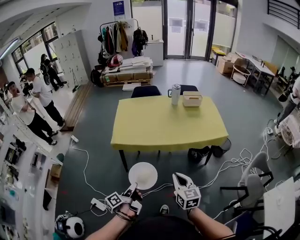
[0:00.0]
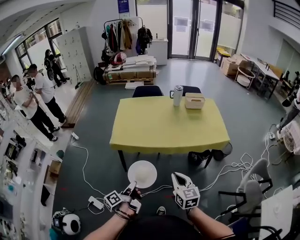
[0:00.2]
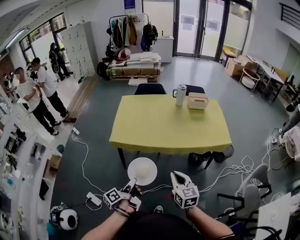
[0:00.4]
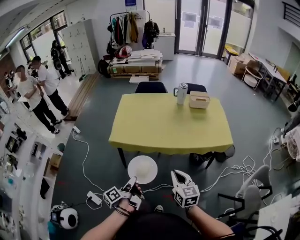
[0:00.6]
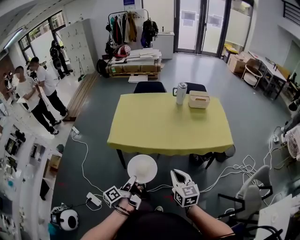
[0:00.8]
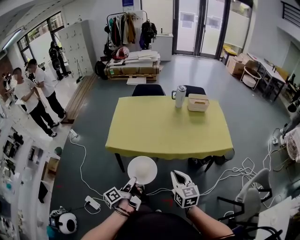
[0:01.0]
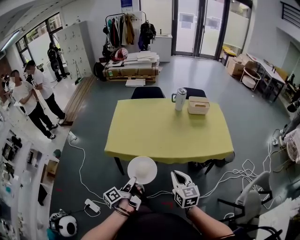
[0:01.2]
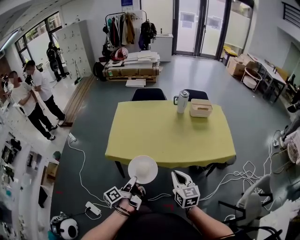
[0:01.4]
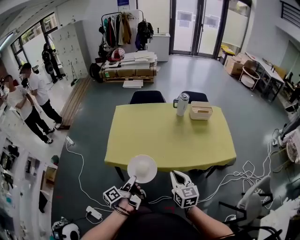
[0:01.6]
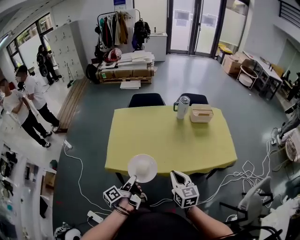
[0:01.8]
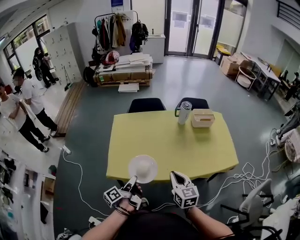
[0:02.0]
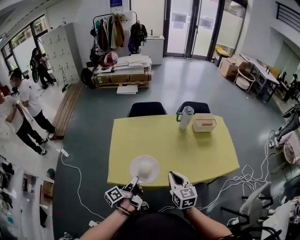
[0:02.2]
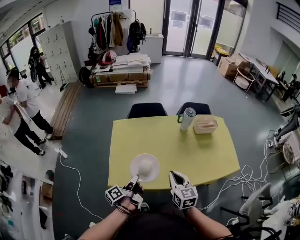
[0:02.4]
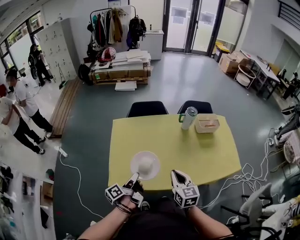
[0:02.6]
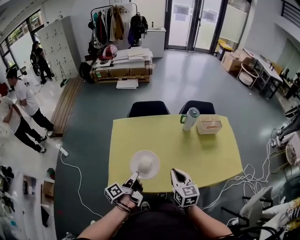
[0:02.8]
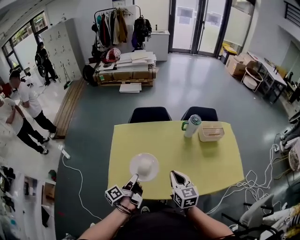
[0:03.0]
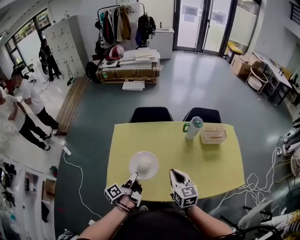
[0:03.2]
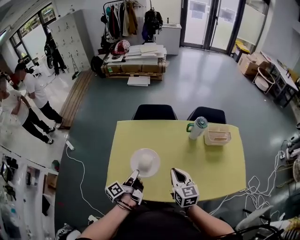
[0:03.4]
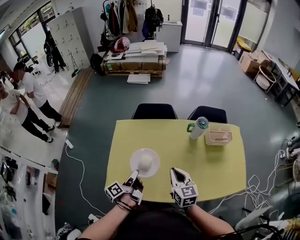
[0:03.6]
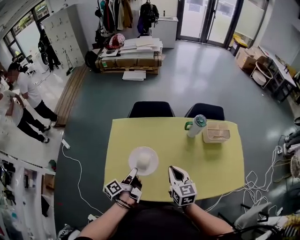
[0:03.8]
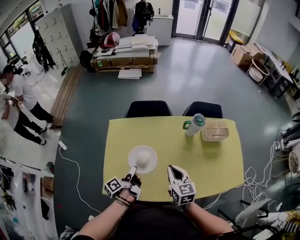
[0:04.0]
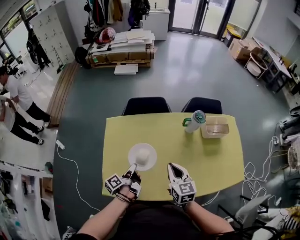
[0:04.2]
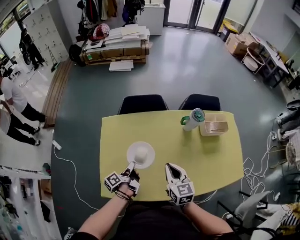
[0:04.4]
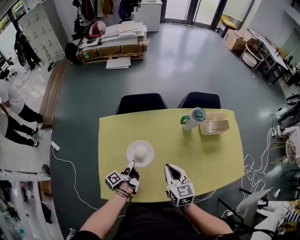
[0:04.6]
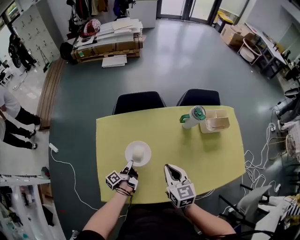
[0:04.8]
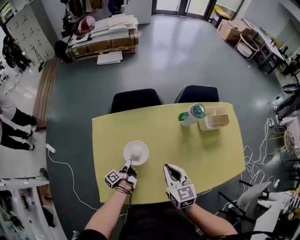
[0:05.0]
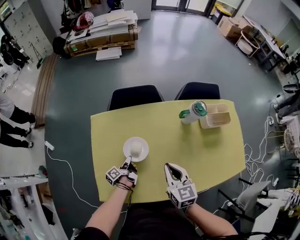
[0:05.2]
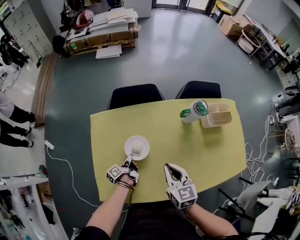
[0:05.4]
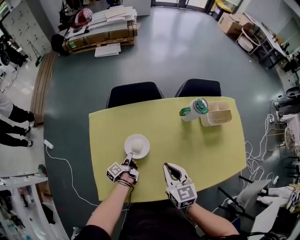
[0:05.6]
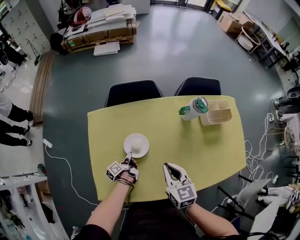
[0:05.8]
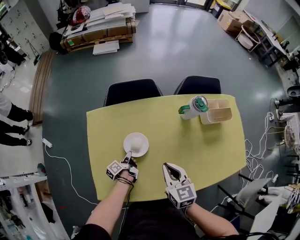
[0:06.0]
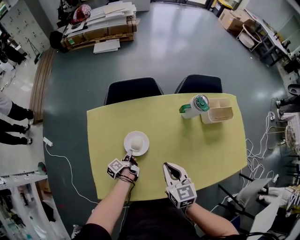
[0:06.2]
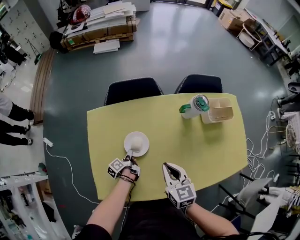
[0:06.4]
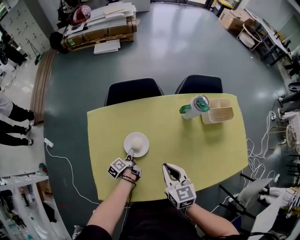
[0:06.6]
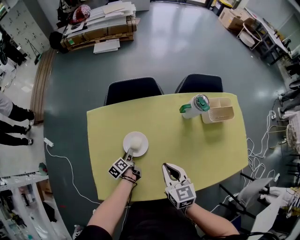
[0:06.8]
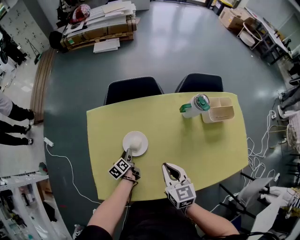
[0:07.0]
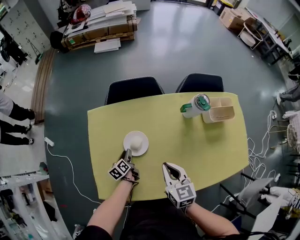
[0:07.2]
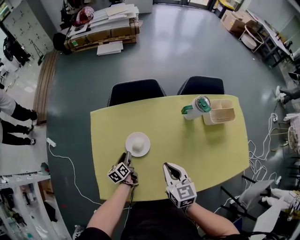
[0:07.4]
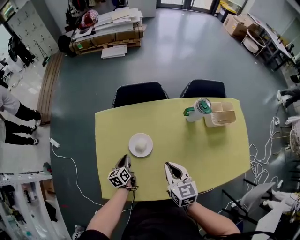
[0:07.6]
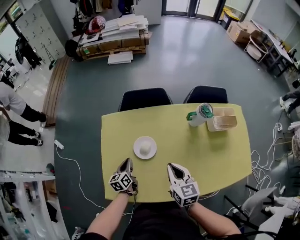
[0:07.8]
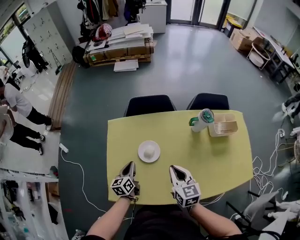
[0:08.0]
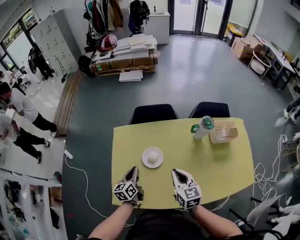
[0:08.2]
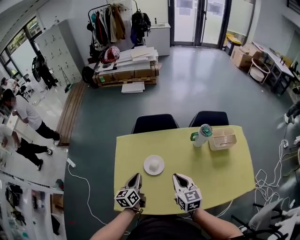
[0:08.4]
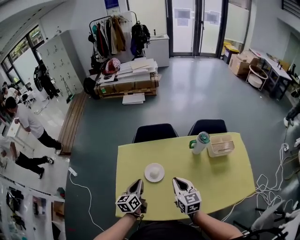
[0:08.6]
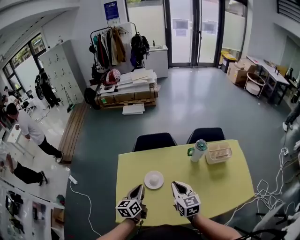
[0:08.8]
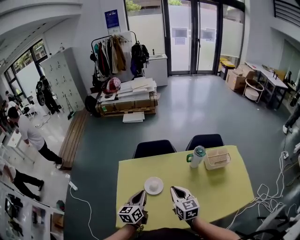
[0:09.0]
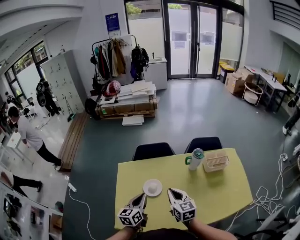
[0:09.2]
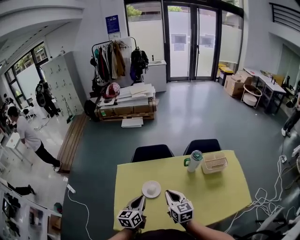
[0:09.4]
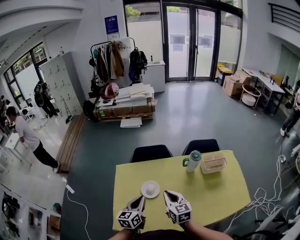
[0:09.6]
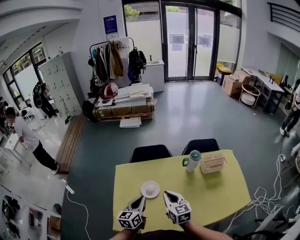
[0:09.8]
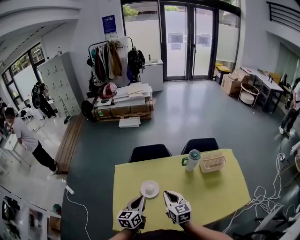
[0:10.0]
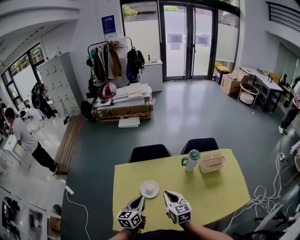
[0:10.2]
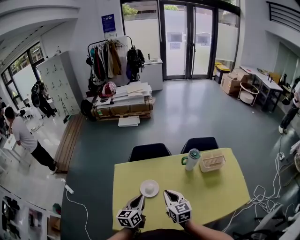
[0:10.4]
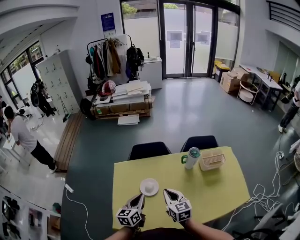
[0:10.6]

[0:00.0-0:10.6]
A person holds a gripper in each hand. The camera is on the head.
0:00.0 to 0:01.6: The right gripper ends up some 25 cm from where it was.
0:01.6 to 0:03.0: The right gripper ends up some 30 cm from where it was.
0:03.0 to 0:04.6: The right gripper ends up roughly 15 cm from where it was.
0:07.6 to 0:09.0: The right gripper travels upward by approximately 10 cm.

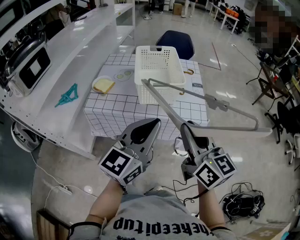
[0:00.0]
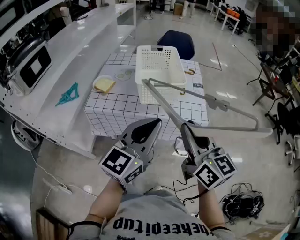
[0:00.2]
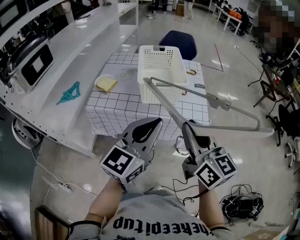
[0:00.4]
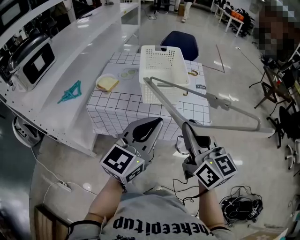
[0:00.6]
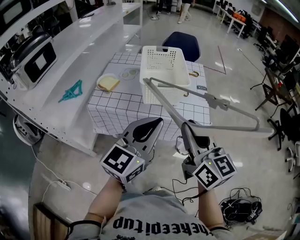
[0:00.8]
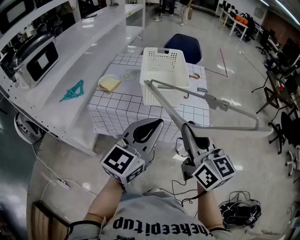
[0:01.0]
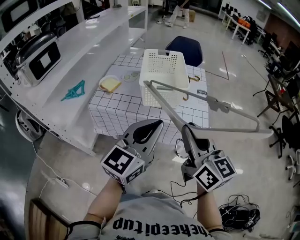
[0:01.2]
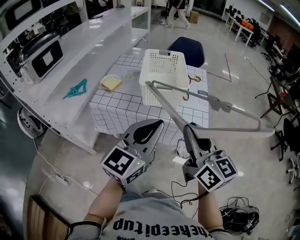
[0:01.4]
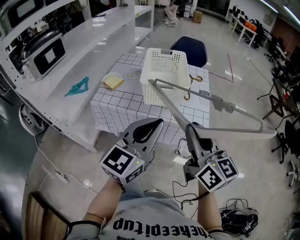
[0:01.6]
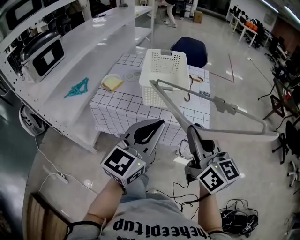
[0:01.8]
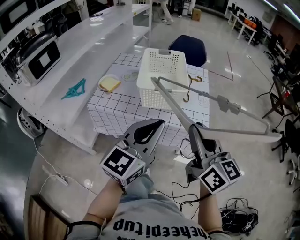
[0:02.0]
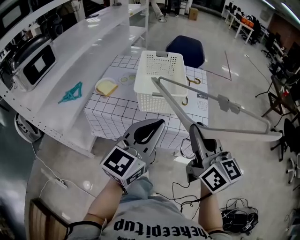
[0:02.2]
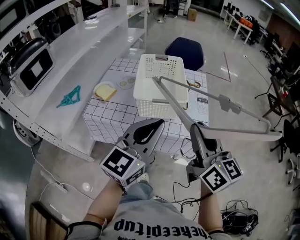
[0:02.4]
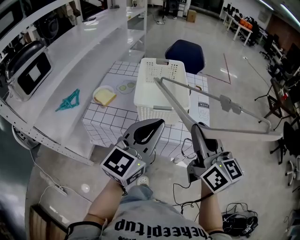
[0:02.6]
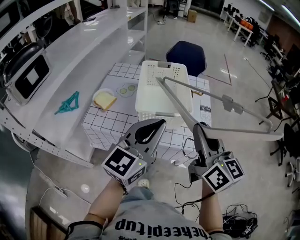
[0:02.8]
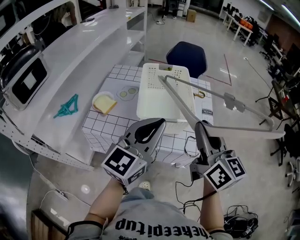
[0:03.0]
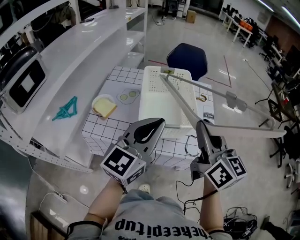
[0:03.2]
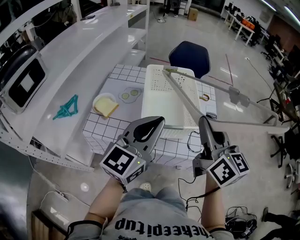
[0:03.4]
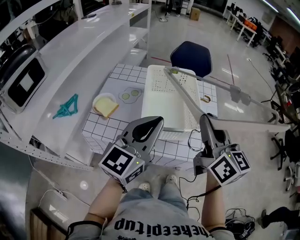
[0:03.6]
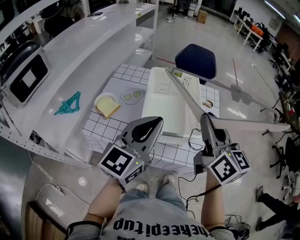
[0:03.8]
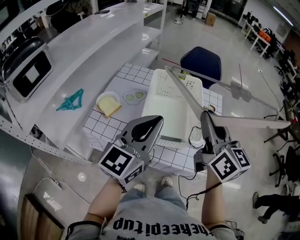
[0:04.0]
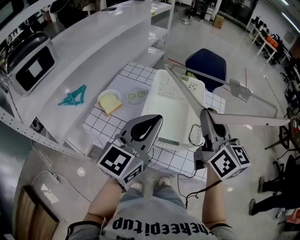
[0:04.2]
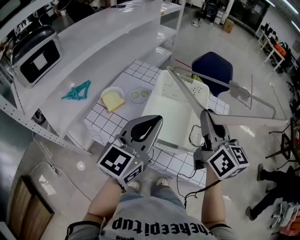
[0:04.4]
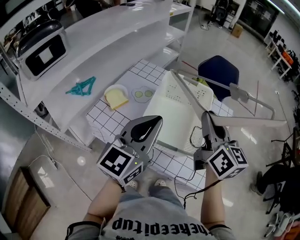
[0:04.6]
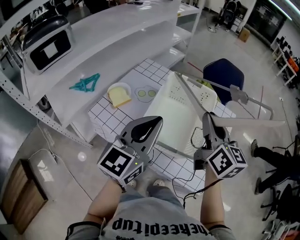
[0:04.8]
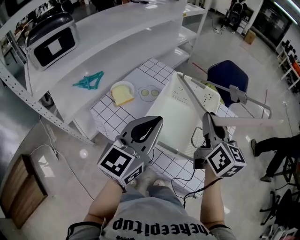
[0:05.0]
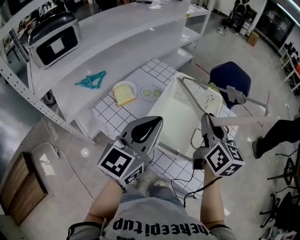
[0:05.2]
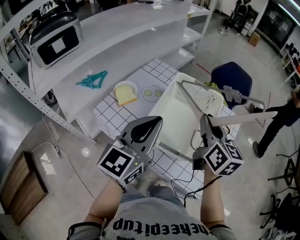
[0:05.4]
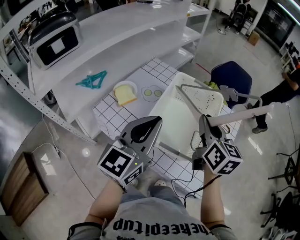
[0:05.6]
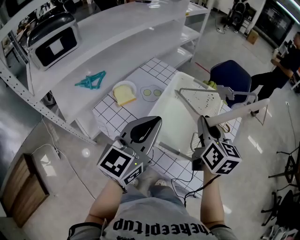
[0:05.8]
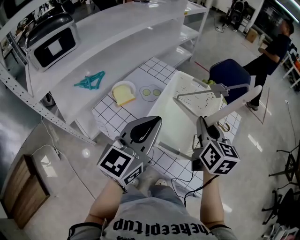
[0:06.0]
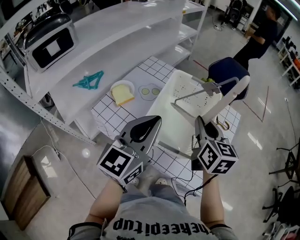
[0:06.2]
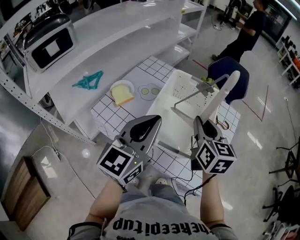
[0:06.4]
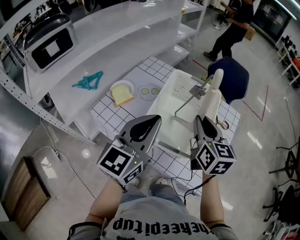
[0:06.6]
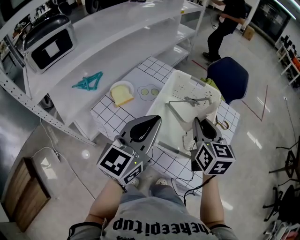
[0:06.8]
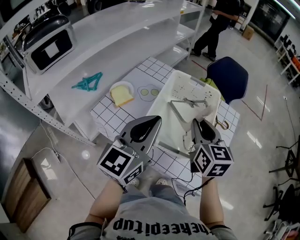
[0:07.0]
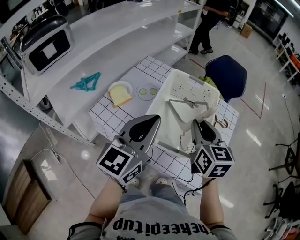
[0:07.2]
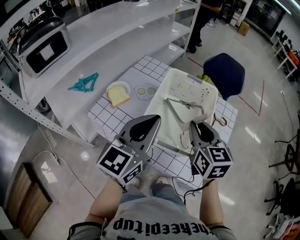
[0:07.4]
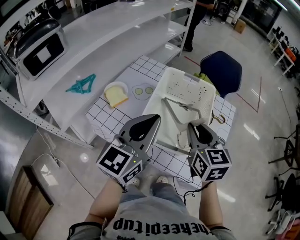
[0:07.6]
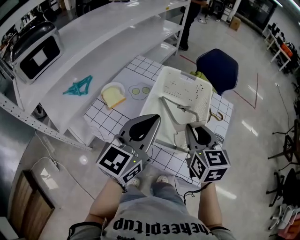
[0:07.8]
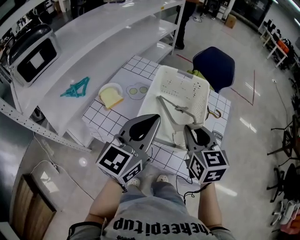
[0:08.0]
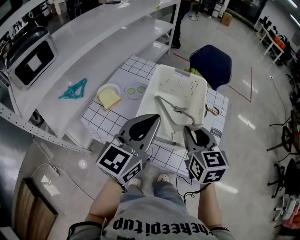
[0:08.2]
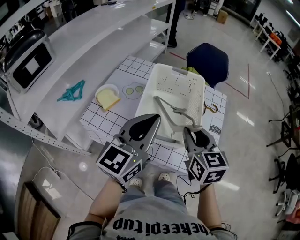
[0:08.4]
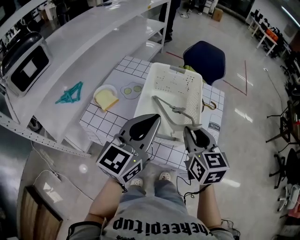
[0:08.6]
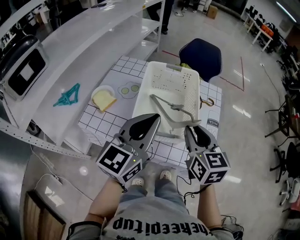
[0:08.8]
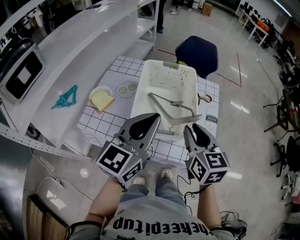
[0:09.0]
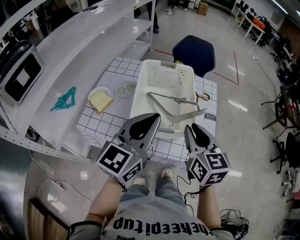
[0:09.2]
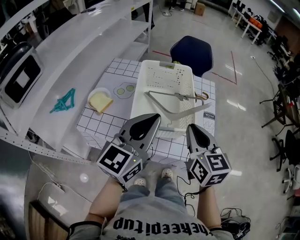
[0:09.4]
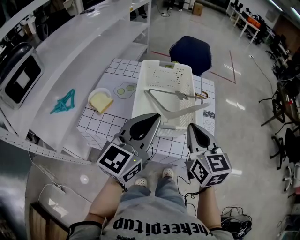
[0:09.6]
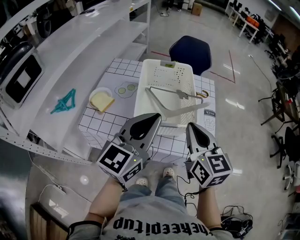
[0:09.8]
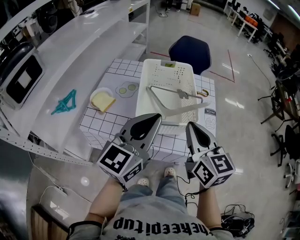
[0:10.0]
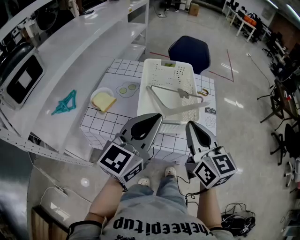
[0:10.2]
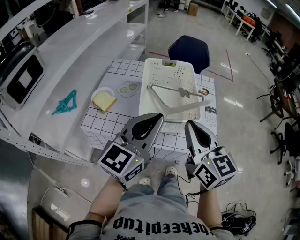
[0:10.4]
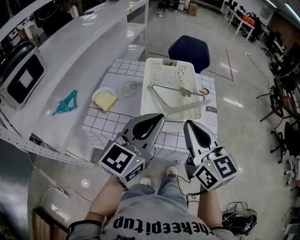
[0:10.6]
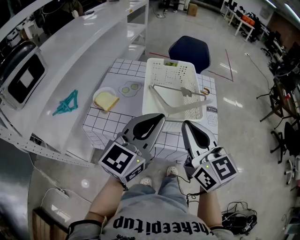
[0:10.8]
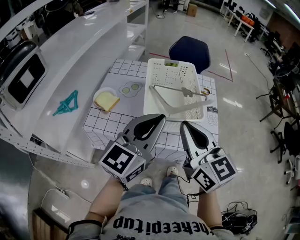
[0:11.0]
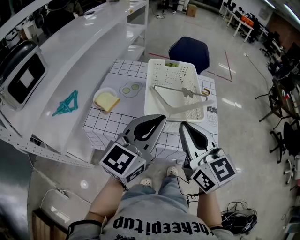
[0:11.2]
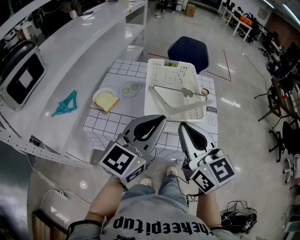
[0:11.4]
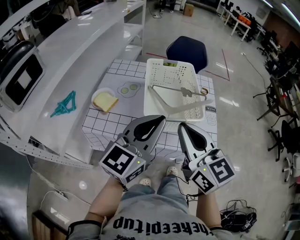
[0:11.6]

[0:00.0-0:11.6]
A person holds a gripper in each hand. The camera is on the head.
0:00.0 to 0:01.4: The grippers stay close to where they were, moving slightly.
0:01.4 to 0:02.8: Both grippers travel together forward, some 15 cm.
0:02.8 to 0:04.4: The right gripper goes approximately 20 cm forward, while the left gripper shifts approximately 15 cm forward.
0:04.4 to 0:05.8: The right gripper shifts approximately 10 cm downward and forward.
0:05.8 to 0:07.2: The grippers move only a little.
0:07.2 to 0:08.8: The right gripper shifts some 10 cm backward.
0:08.8 to 0:10.2: The left gripper travels backward by roughly 5 cm. The right gripper travels backward and upward by about 10 cm, and closes.
0:10.2 to 0:11.6: The right gripper is displaced to the left by about 5 cm.

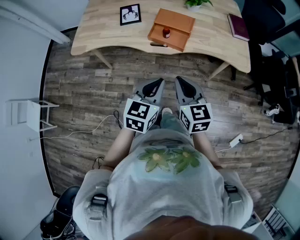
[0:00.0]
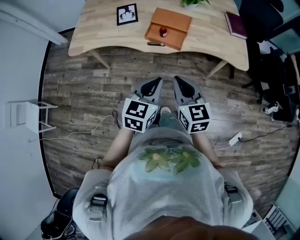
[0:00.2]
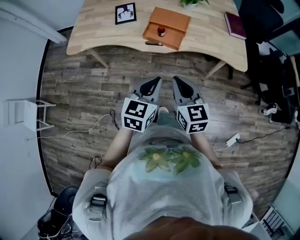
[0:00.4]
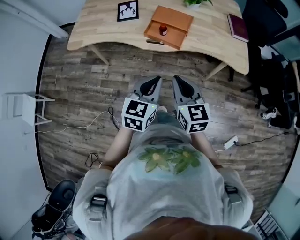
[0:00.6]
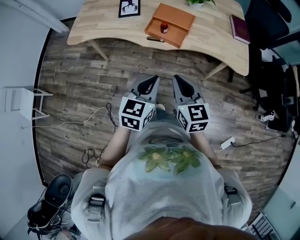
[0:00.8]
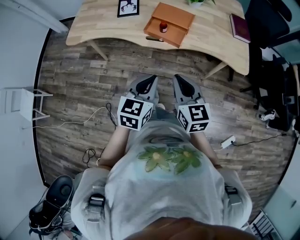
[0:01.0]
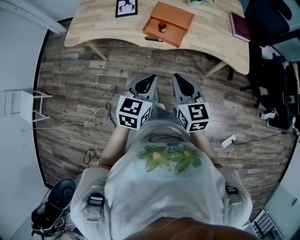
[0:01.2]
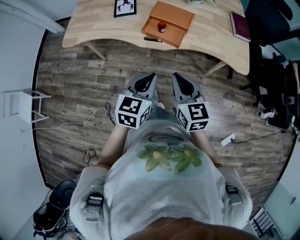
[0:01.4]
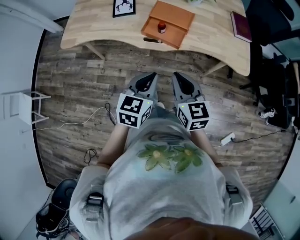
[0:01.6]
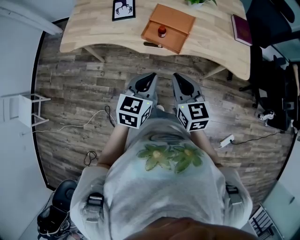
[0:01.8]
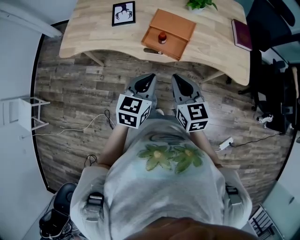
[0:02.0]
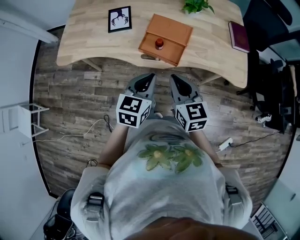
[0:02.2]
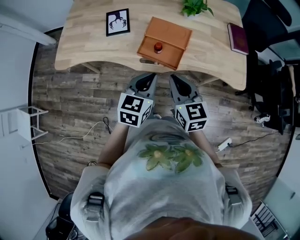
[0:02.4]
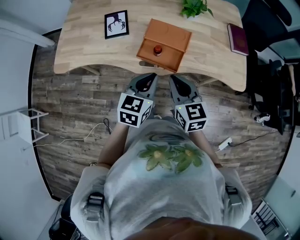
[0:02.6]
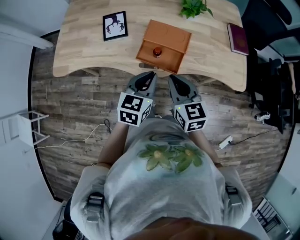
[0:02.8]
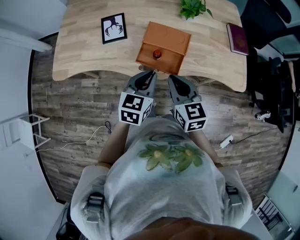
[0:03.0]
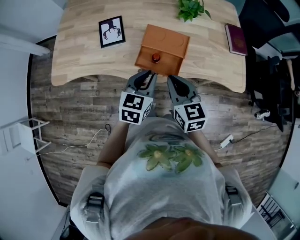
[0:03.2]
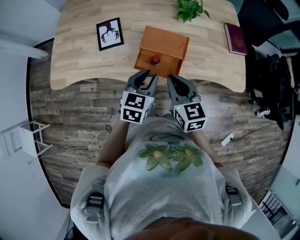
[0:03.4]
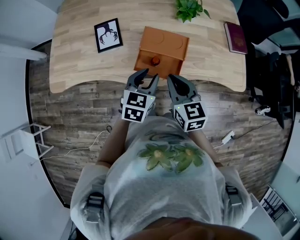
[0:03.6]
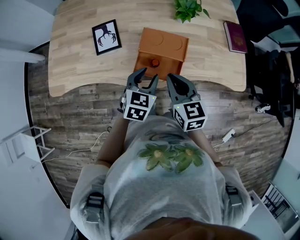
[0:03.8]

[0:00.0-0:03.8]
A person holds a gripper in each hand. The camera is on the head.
0:00.0 to 0:01.2: There are only small adjustments of the grippers.
0:01.2 to 0:02.6: Both grippers move forward, roughly 20 cm.
0:02.6 to 0:03.8: The left gripper travels forward and downward by about 10 cm, and opens up; the right gripper moves forward, roughly 10 cm.
